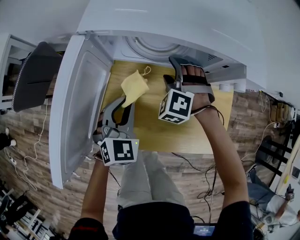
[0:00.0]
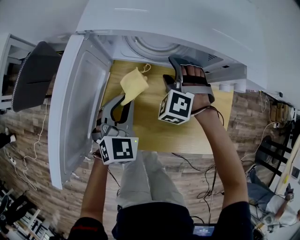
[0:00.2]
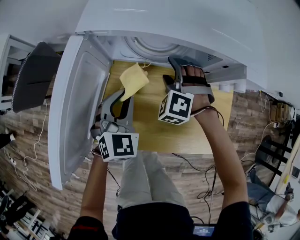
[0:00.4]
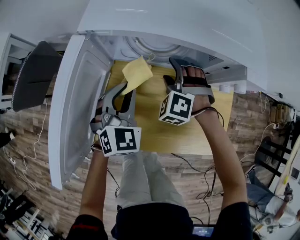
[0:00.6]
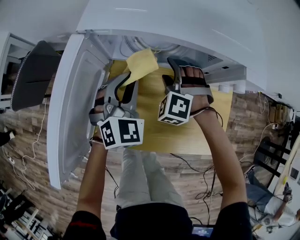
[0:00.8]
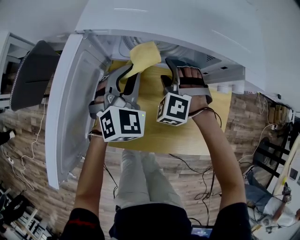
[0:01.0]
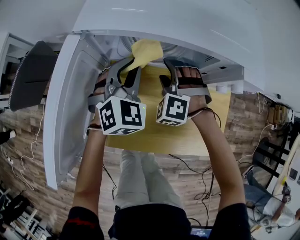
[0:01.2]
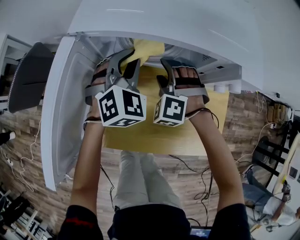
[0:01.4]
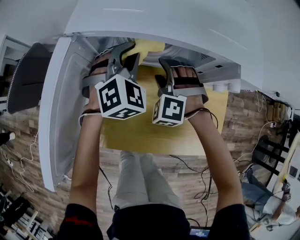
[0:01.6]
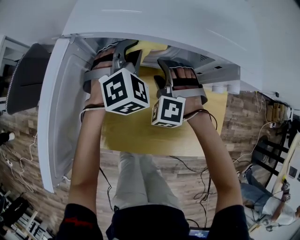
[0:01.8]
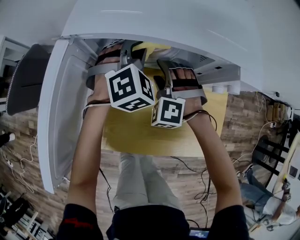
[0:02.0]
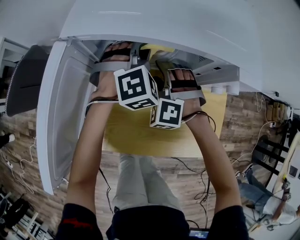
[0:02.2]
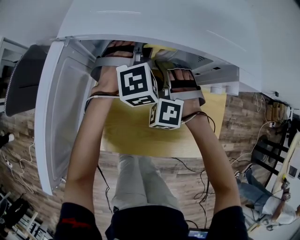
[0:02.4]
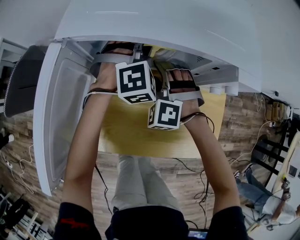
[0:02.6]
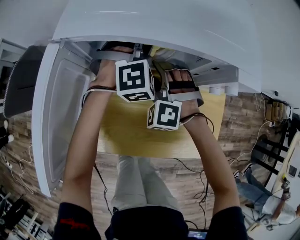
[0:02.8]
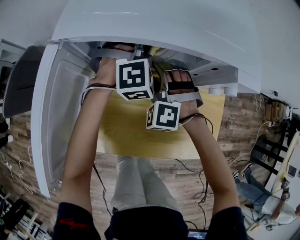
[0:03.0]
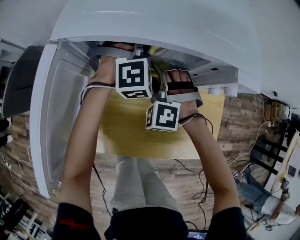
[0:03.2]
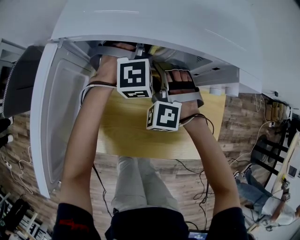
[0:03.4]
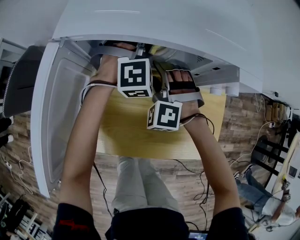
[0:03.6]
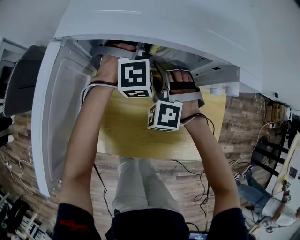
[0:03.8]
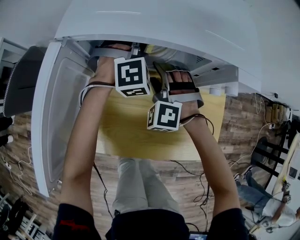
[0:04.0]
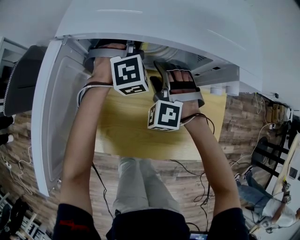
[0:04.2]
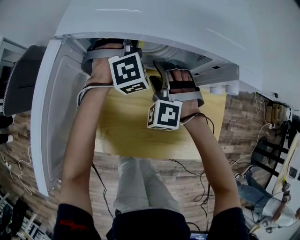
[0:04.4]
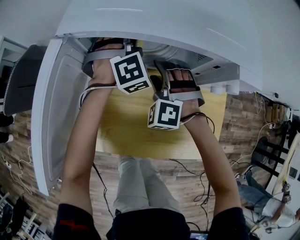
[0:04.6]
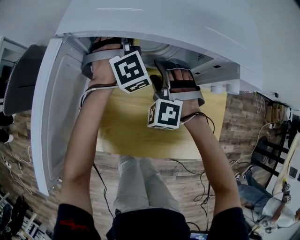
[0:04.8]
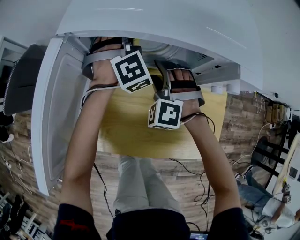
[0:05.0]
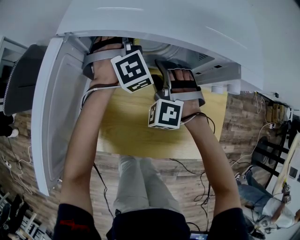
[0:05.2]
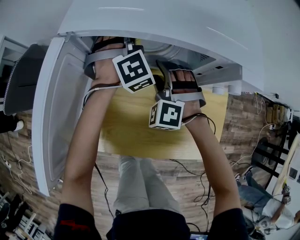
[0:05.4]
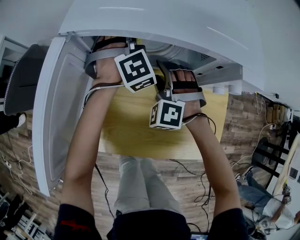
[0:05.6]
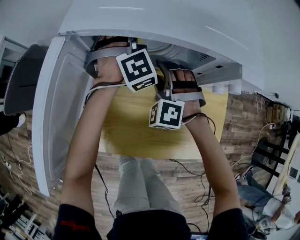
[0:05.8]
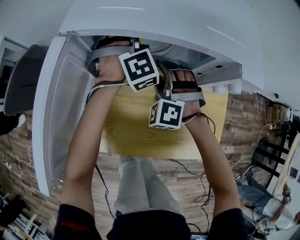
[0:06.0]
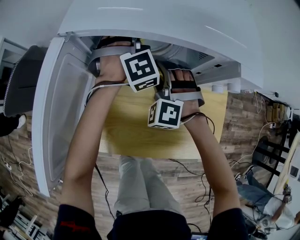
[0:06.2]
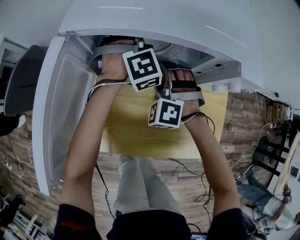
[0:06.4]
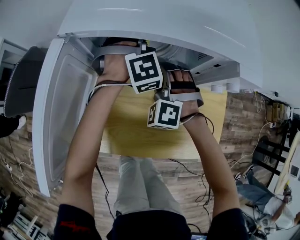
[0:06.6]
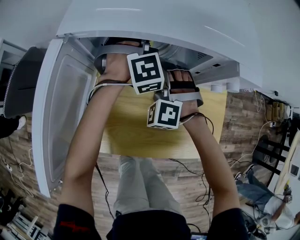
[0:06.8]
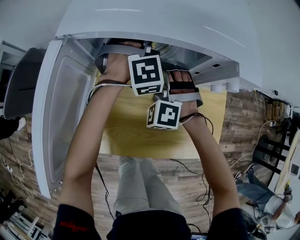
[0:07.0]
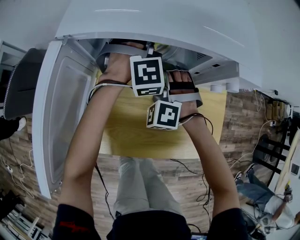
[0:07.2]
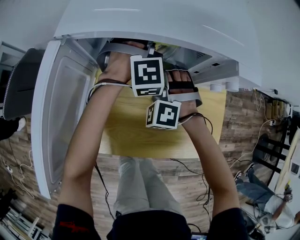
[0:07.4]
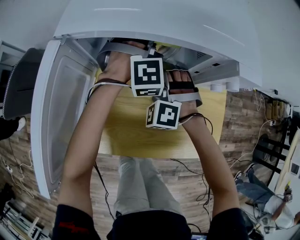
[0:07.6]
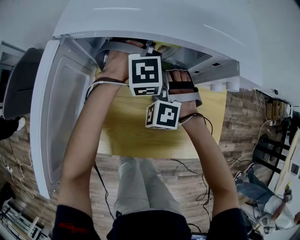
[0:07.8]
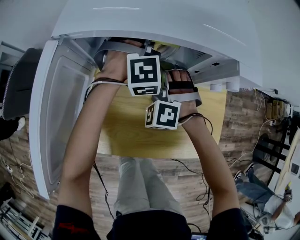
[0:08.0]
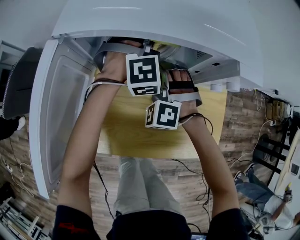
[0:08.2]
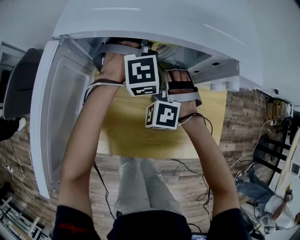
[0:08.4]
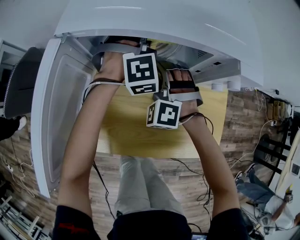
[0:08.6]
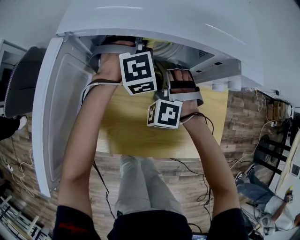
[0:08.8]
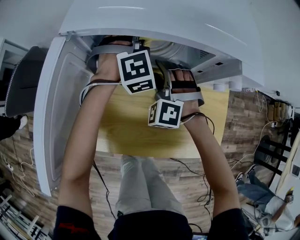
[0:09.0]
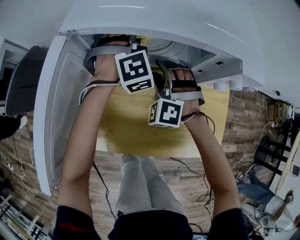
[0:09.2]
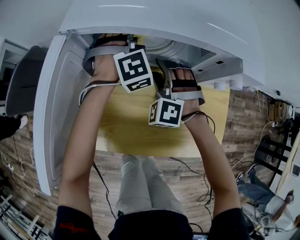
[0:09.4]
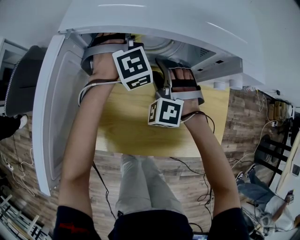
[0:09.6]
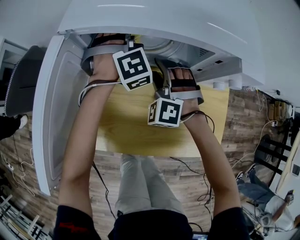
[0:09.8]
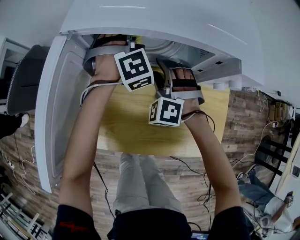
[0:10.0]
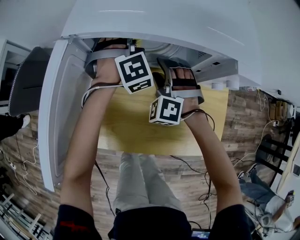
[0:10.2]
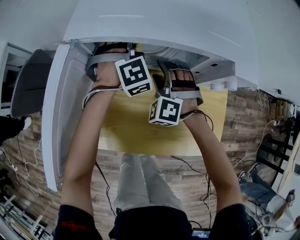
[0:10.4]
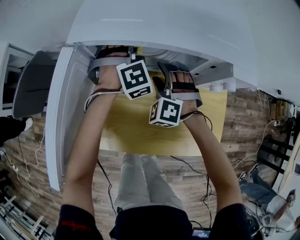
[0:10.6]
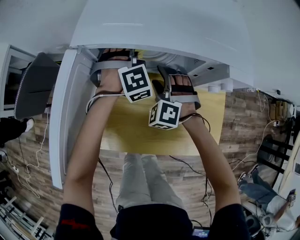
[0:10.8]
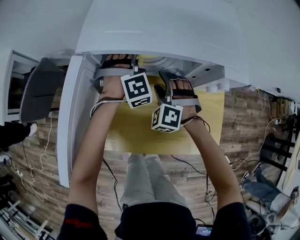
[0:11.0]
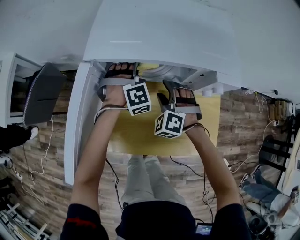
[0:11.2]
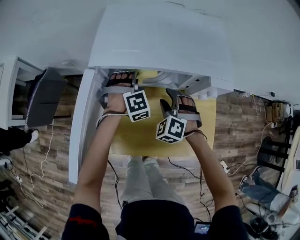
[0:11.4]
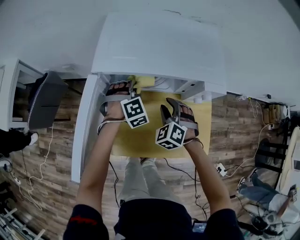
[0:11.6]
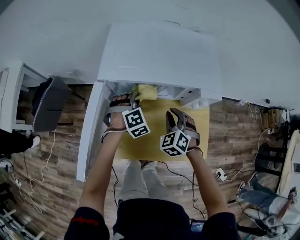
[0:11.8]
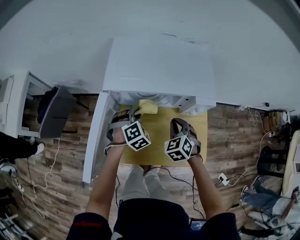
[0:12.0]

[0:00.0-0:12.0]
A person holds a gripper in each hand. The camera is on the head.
0:00.0 to 0:01.6: The left gripper moves forward, about 15 cm, and swivels some 20 degrees.
0:01.6 to 0:03.0: The left gripper is displaced to the right and forward by about 10 cm, and swivels about 20 degrees.
0:03.0 to 0:04.4: The left gripper goes roughly 5 cm to the left.
0:04.4 to 0:06.0: The grippers make only small movements.
0:06.0 to 0:07.6: The left gripper goes roughly 5 cm to the right.
0:07.6 to 0:09.0: The left gripper shifts approximately 5 cm to the left.
0:09.0 to 0:10.4: The grippers make only small movements.
0:10.4 to 0:12.0: The right gripper is displaced upward, to the right and backward by some 15 cm, rotates around the line of its fingers by about 40 degrees, clockwise from behind, and closes. The left gripper travels backward by approximately 10 cm, and rotates approximately 20 degrees.

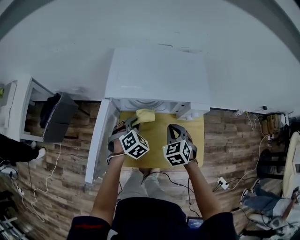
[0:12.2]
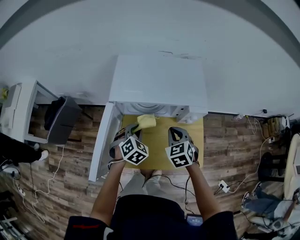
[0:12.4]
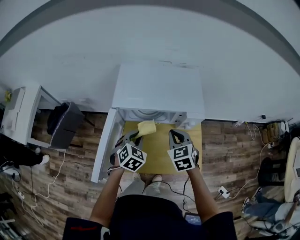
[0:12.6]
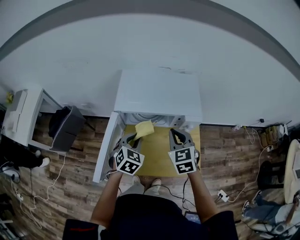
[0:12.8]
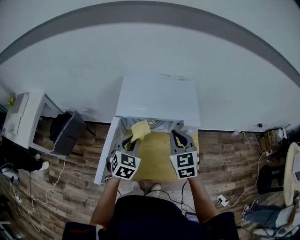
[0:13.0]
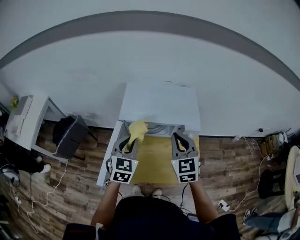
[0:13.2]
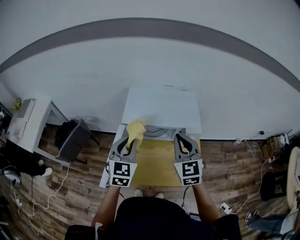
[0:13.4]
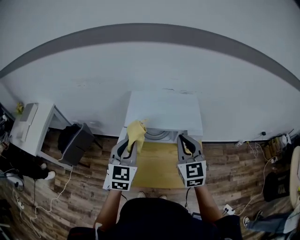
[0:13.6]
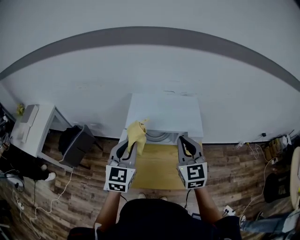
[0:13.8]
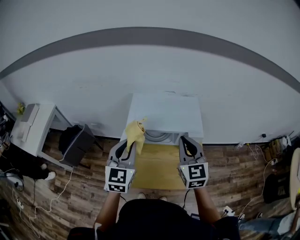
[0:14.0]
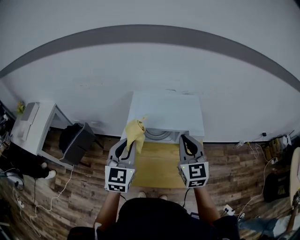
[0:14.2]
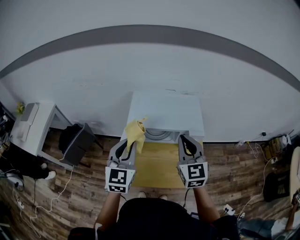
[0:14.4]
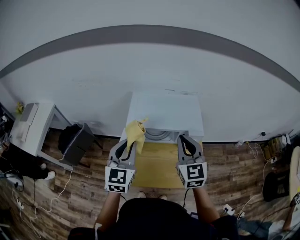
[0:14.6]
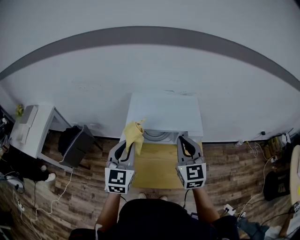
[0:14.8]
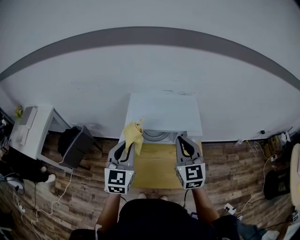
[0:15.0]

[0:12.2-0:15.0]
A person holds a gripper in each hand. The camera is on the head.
0:12.2 to 0:13.6: Both grippers move upward, some 30 cm. The left gripper tips its fingers upward by about 40 degrees. The right gripper angles its fingers upward, by roughly 30 degrees.
0:13.6 to 0:15.0: The grippers move only a little.

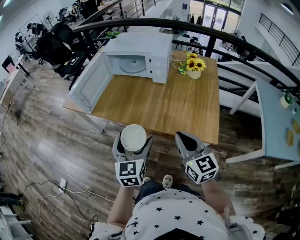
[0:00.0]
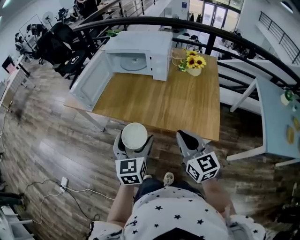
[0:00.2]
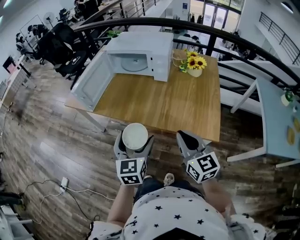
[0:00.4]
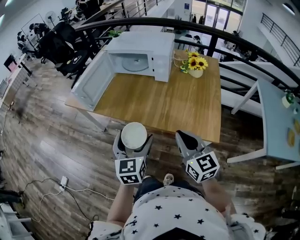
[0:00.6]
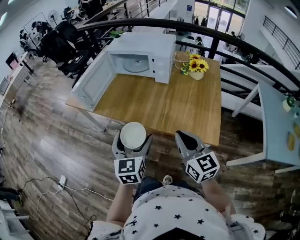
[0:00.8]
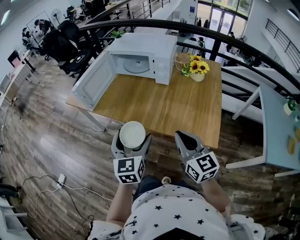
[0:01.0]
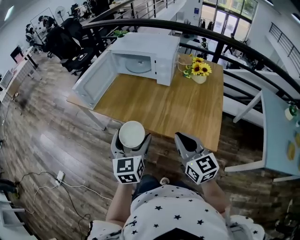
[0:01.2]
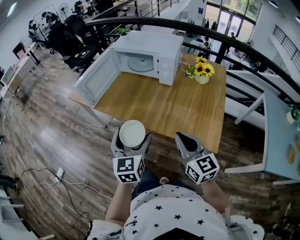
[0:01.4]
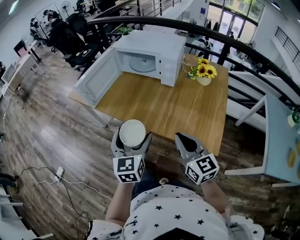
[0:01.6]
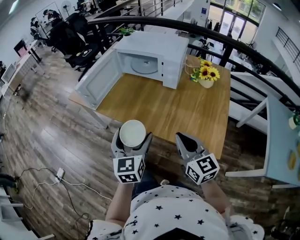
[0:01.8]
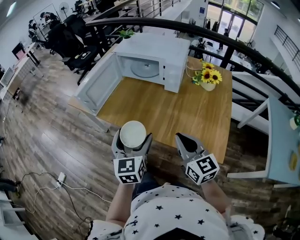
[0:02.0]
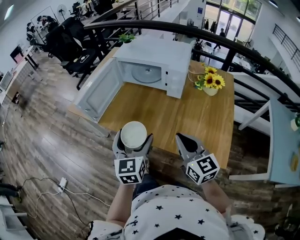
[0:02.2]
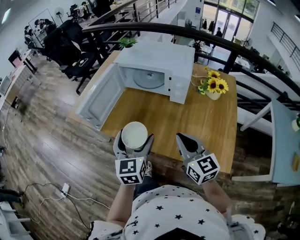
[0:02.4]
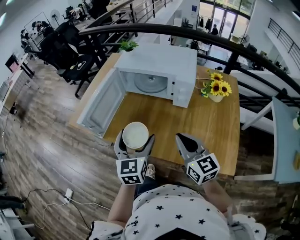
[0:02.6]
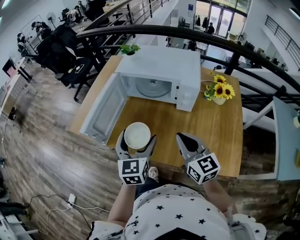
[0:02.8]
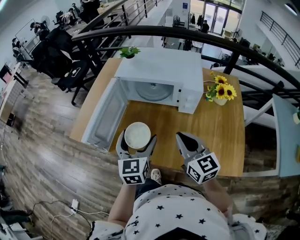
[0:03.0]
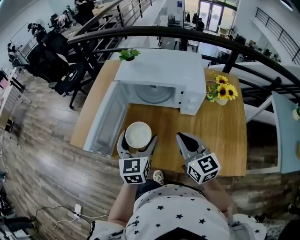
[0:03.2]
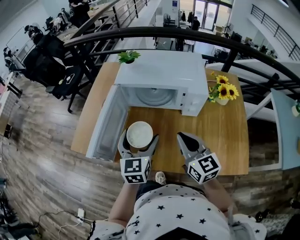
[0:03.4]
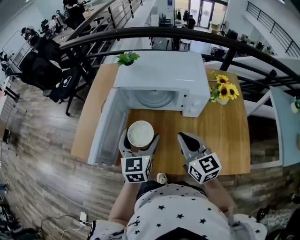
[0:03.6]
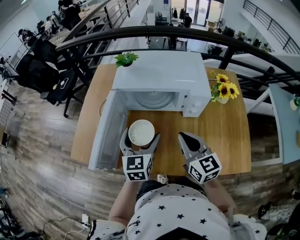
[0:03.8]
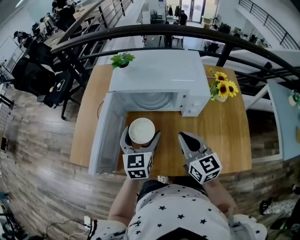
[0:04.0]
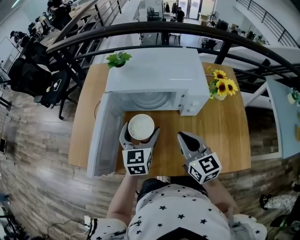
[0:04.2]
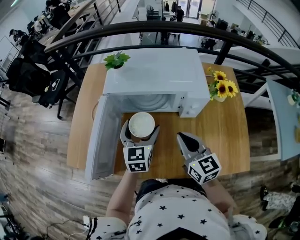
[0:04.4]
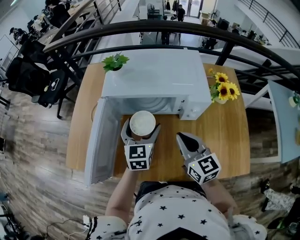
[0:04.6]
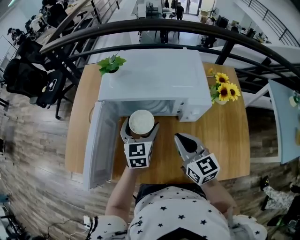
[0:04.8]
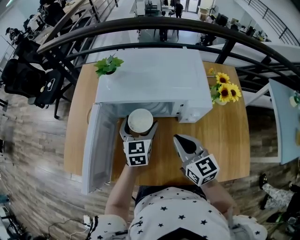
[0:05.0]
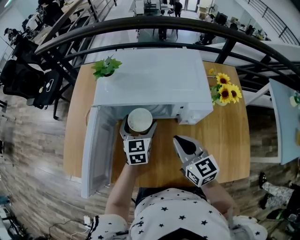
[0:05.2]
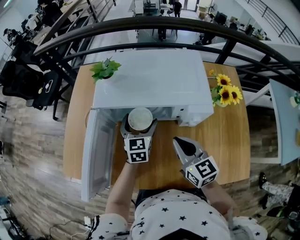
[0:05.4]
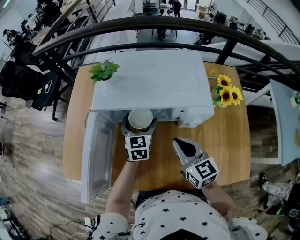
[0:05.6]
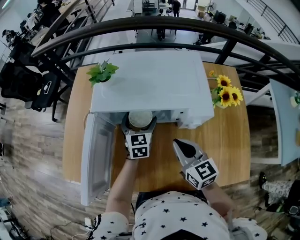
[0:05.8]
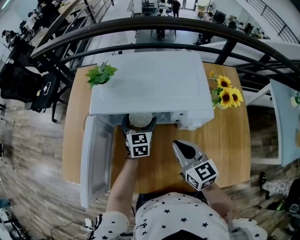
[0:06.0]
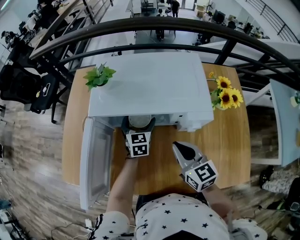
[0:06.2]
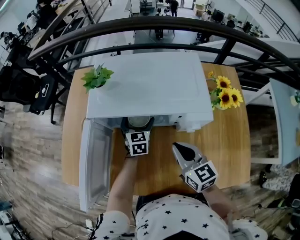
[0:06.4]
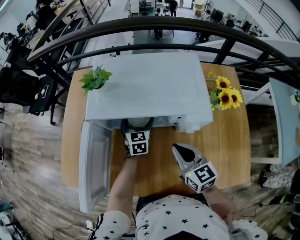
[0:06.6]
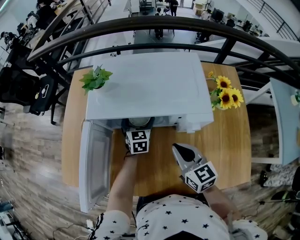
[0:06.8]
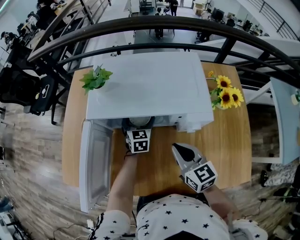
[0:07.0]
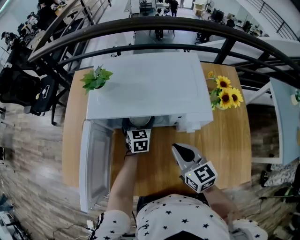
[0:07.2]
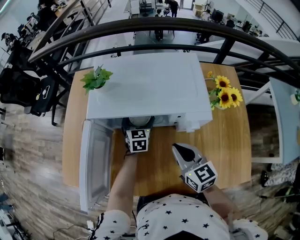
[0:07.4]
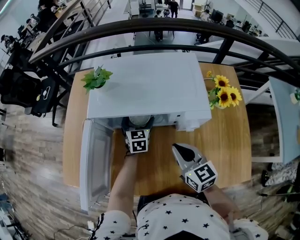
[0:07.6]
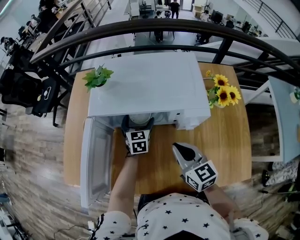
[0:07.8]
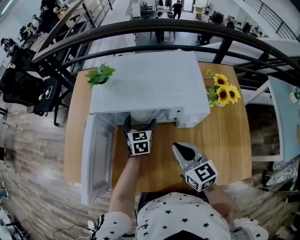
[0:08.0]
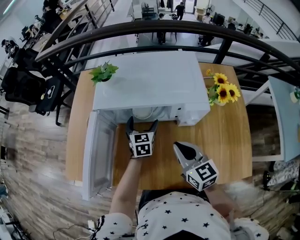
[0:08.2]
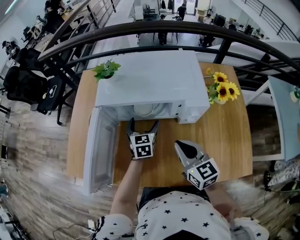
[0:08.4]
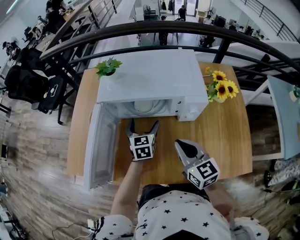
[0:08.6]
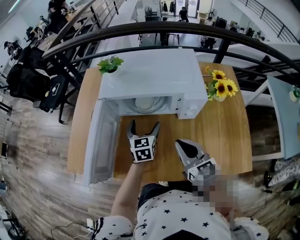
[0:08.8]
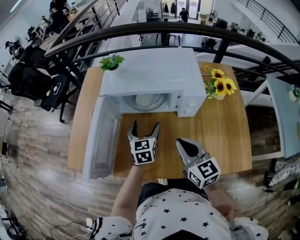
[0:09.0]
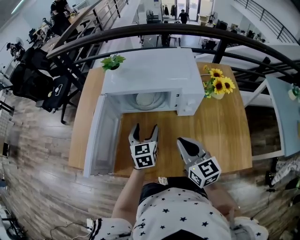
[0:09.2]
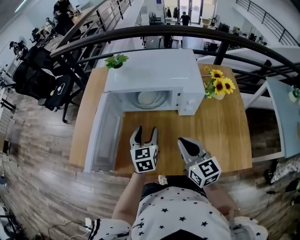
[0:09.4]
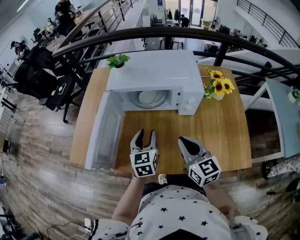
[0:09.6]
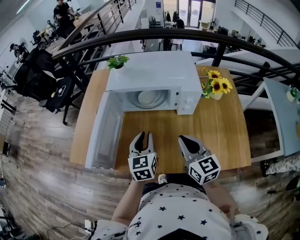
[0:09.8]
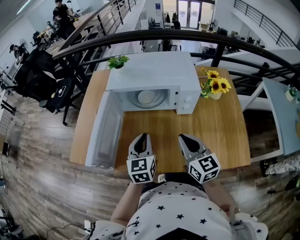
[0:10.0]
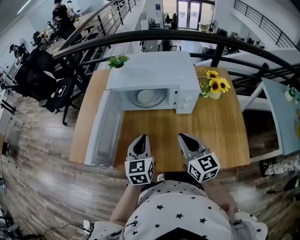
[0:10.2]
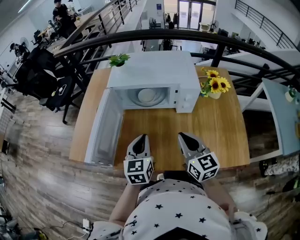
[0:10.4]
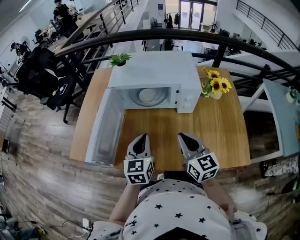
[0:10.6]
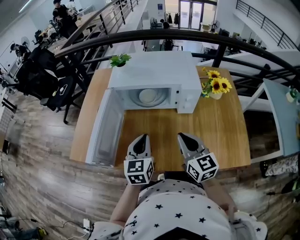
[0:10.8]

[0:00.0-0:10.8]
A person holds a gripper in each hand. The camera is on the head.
0:00.0 to 0:01.6: The grippers move only a little.
0:01.6 to 0:03.0: The two grippers go roughly 25 cm forward.
0:03.0 to 0:04.6: The right gripper travels forward by roughly 10 cm, while the left gripper heads forward, covering about 20 cm.
0:04.6 to 0:06.2: The left gripper travels forward and downward by roughly 15 cm. Meanwhile the right gripper shifts by some 5 cm.
0:06.2 to 0:07.8: There are only small adjustments of the grippers.
0:07.8 to 0:09.2: The right gripper moves backward, some 10 cm. The left gripper travels backward and upward by some 20 cm.
0:09.2 to 0:10.8: The left gripper heads backward and upward, covering about 10 cm, and closes up.
